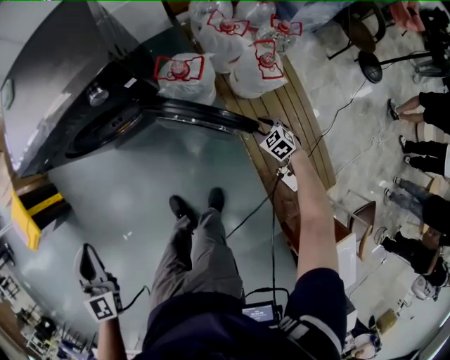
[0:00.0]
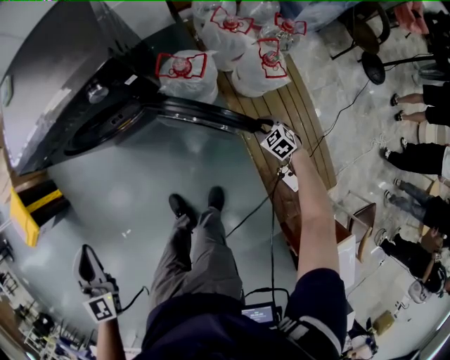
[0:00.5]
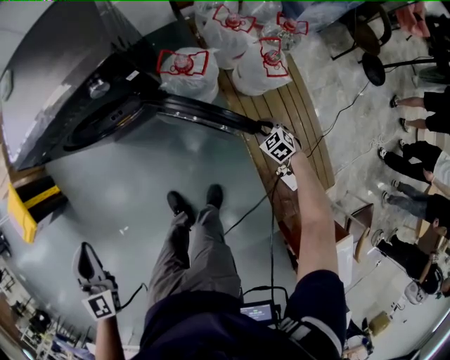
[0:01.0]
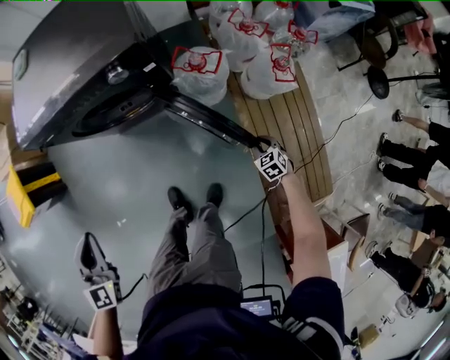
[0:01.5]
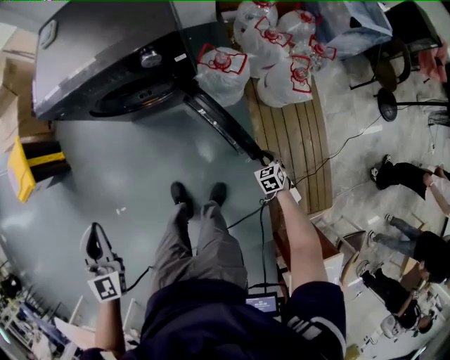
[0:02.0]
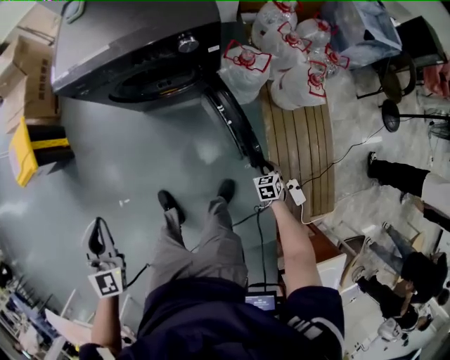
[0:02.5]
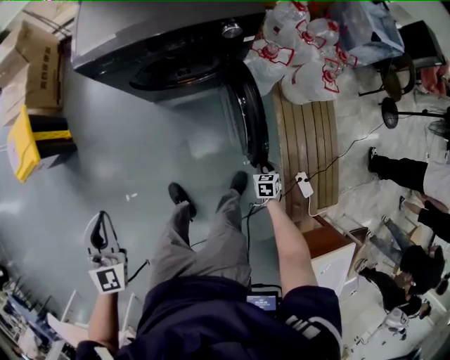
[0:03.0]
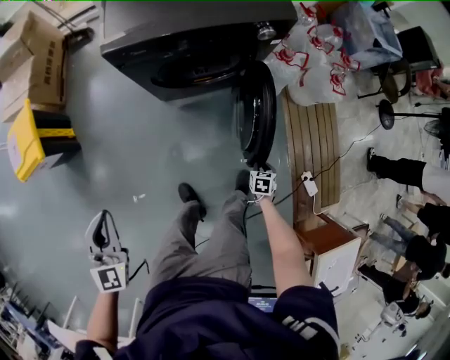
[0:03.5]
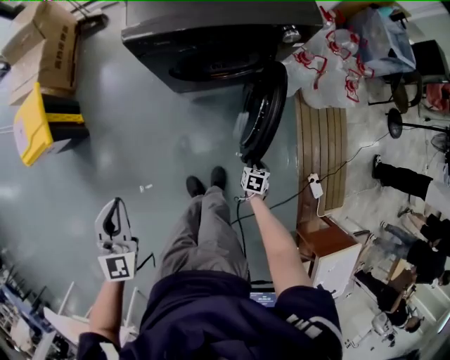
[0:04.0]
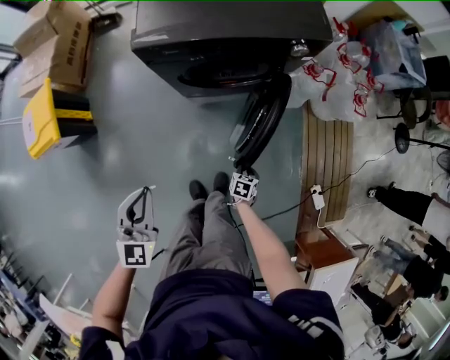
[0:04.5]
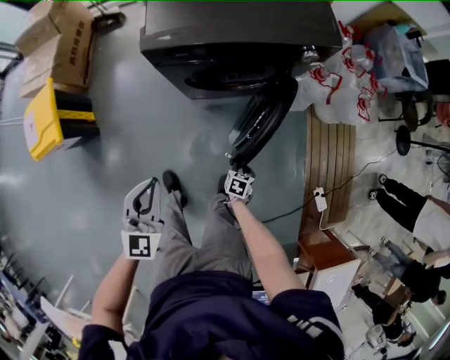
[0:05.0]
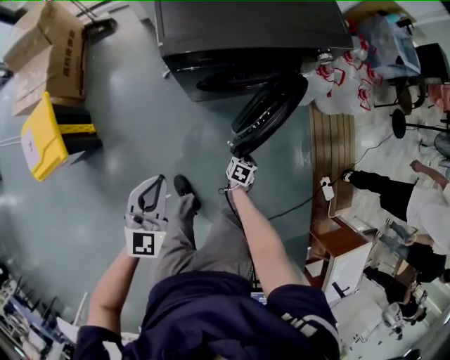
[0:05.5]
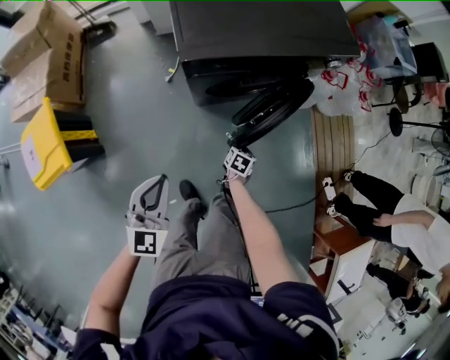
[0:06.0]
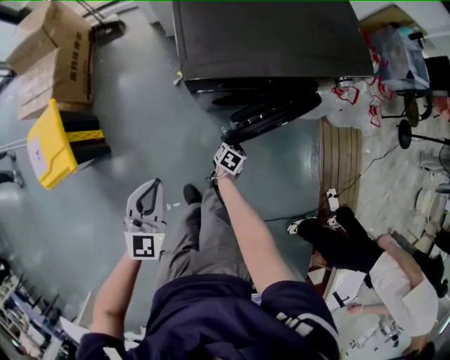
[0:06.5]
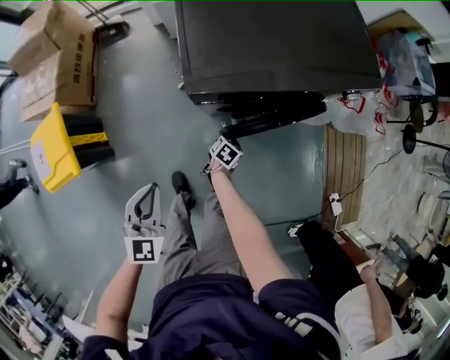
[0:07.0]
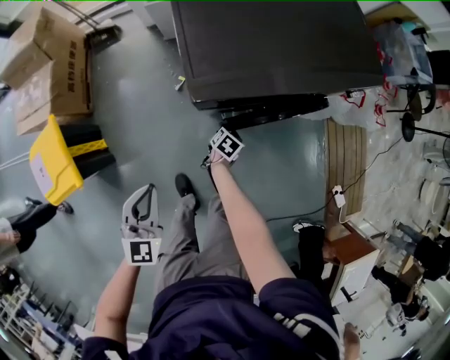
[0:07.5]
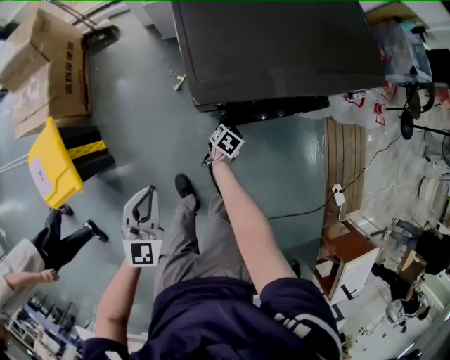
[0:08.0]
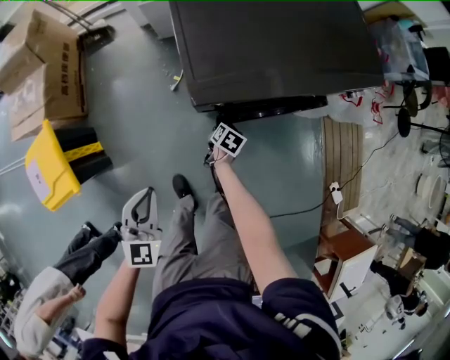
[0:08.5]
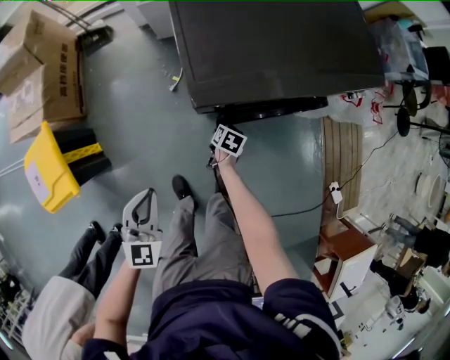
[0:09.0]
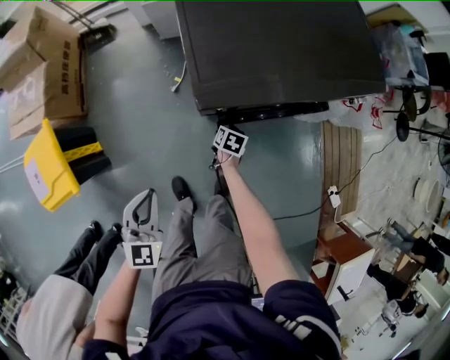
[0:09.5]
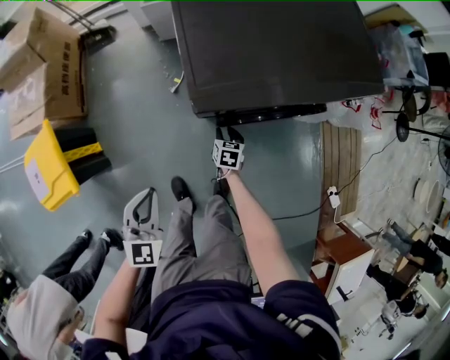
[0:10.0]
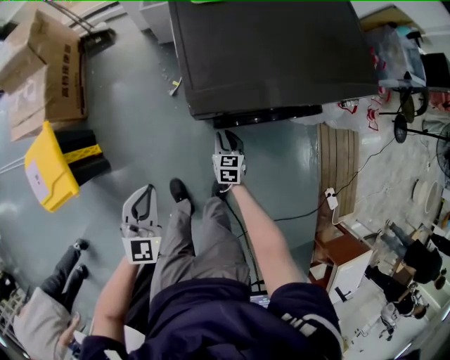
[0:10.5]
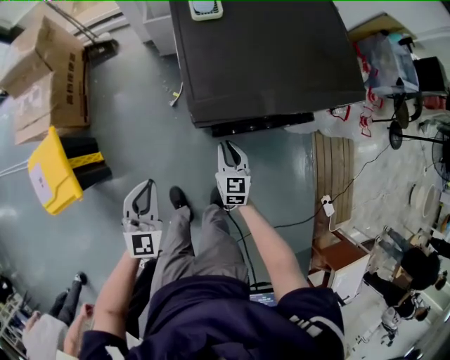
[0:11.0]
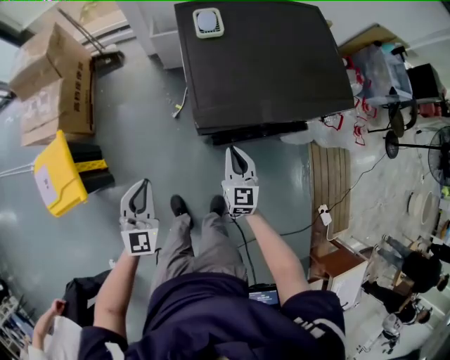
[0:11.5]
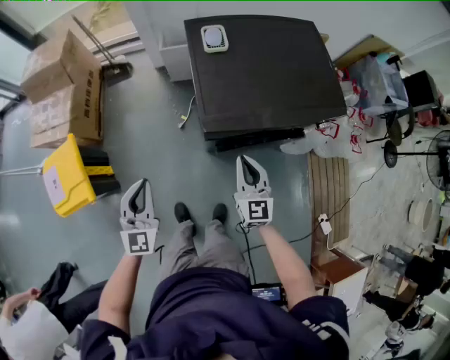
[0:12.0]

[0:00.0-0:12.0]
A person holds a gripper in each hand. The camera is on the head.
0:00.0 to 0:02.0: The left gripper heads to the left and backward, covering roughly 10 cm. Meanwhile the right gripper is displaced to the left and backward by about 15 cm.
0:02.0 to 0:04.0: Both grippers move to the left, about 35 cm. The right gripper swivels about 30 degrees.
0:04.0 to 0:06.0: The right gripper heads to the left, covering some 30 cm, and swivels roughly 20 degrees. Meanwhile the left gripper travels to the left, forward and downward by roughly 20 cm, and turns by about 20 degrees.
0:06.0 to 0:08.0: The right gripper heads forward and to the left, covering approximately 25 cm, while the left gripper is displaced forward and to the left by approximately 15 cm.
0:08.0 to 0:10.0: The right gripper rotates some 30 degrees.
0:10.0 to 0:12.0: The left gripper heads upward, covering some 15 cm, and changes its angle by roughly 20 degrees. The right gripper travels upward by about 40 cm, tips its fingers upward by about 40 degrees, and closes up.

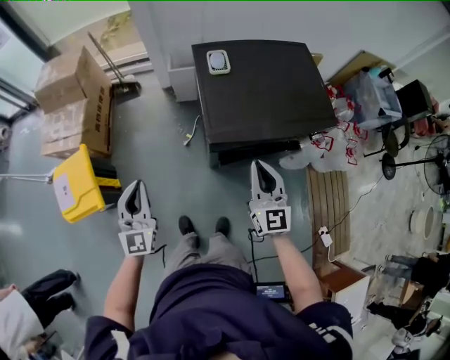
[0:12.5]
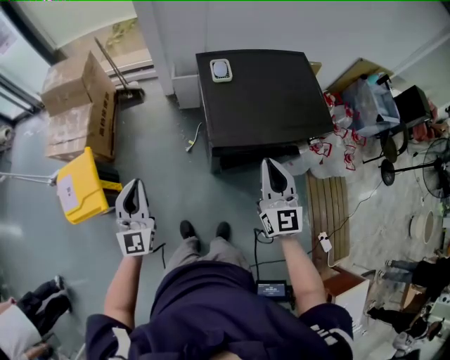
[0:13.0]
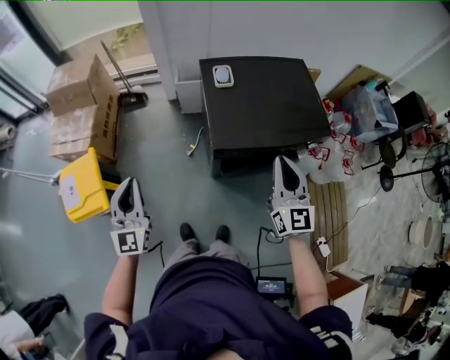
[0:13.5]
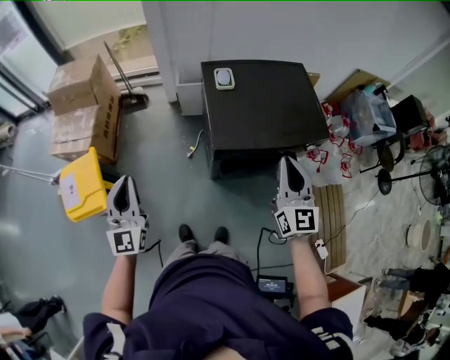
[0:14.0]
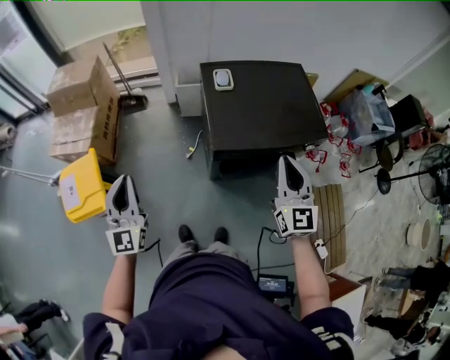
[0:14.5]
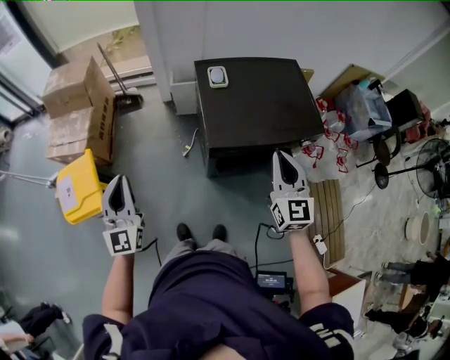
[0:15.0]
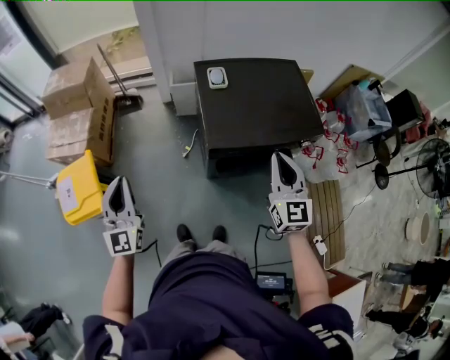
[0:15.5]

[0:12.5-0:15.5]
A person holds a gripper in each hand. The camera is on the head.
0:12.5 to 0:14.0: Both grippers move upward, about 15 cm.
0:14.0 to 0:15.5: The grippers move only a little.

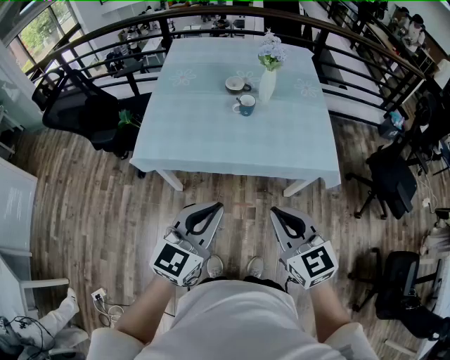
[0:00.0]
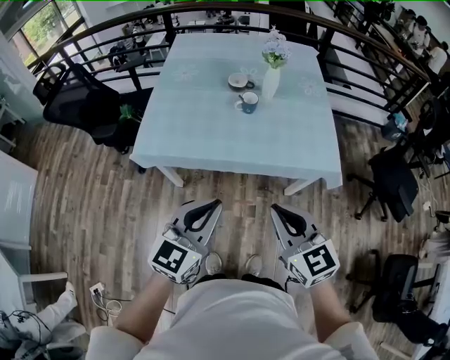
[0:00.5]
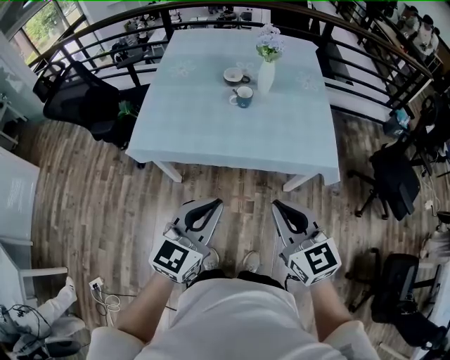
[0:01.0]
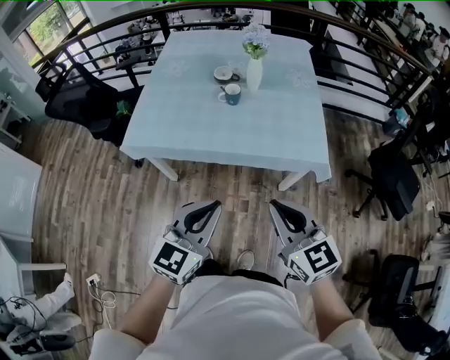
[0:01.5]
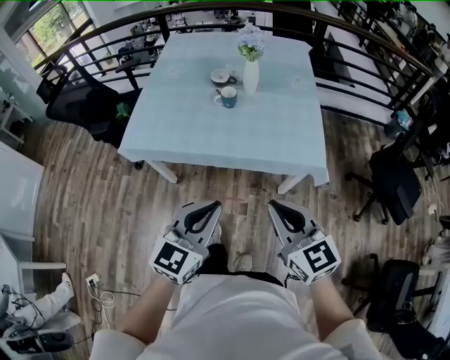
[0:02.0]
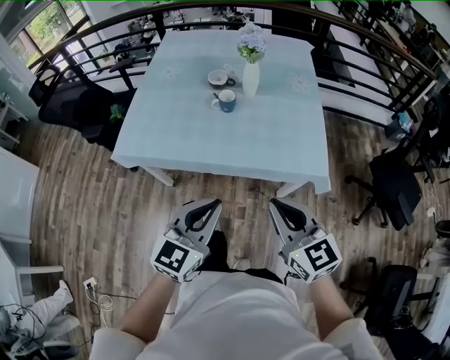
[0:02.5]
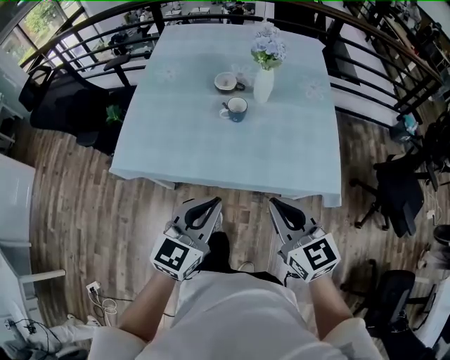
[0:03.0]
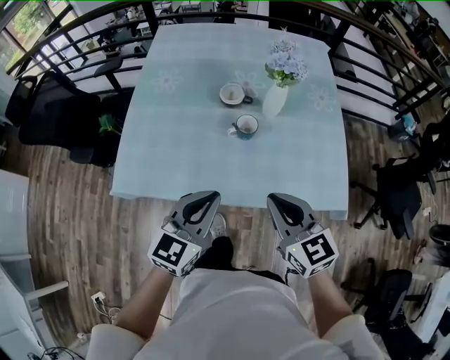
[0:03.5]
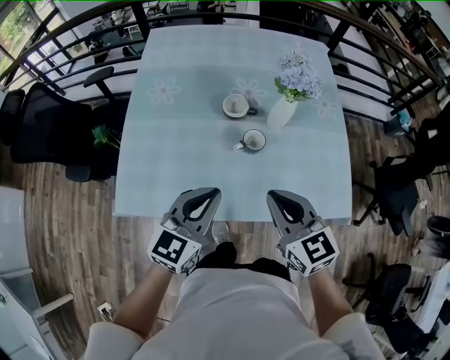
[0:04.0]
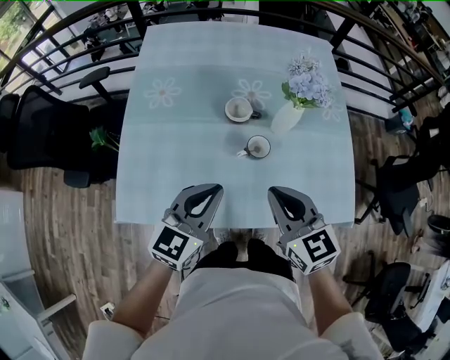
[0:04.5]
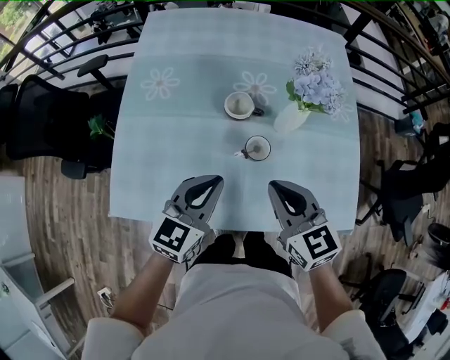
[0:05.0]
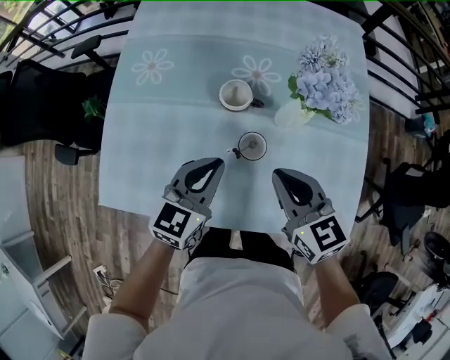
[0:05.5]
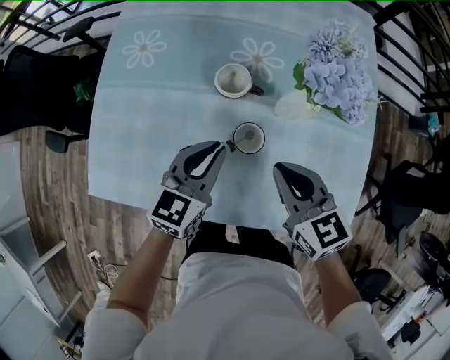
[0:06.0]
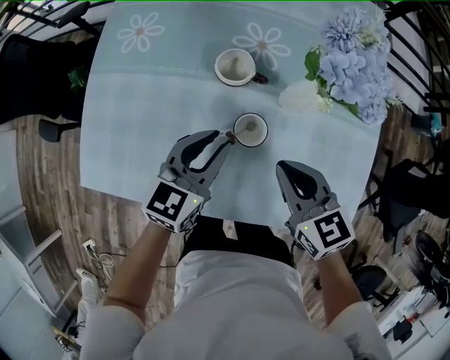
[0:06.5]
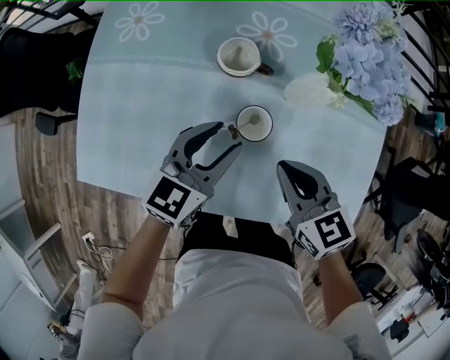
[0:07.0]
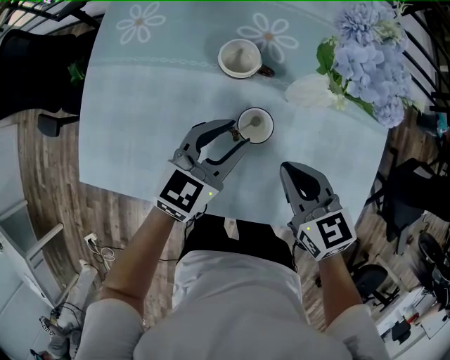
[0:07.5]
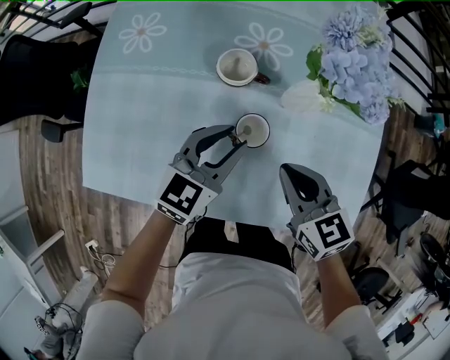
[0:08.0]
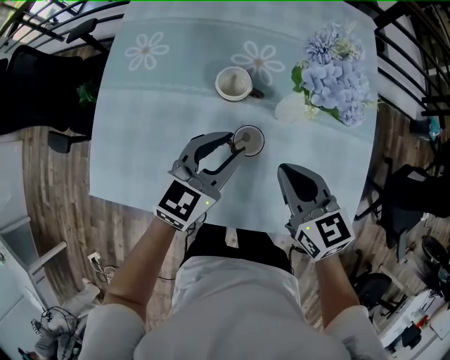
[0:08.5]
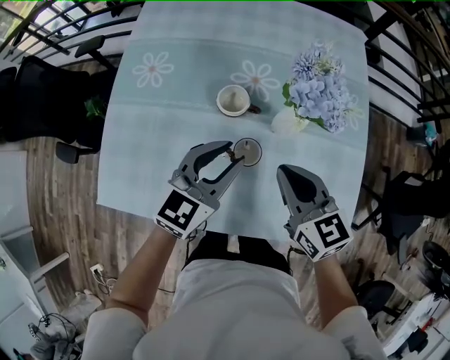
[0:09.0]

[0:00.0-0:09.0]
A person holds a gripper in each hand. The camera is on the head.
0:00.0 to 0:02.0: The grippers both shift to the right by some 10 cm.
0:02.0 to 0:04.5: Both grippers are carried forward, some 40 cm.
0:04.5 to 0:07.0: The left gripper moves downward, forward and to the right, about 20 cm, and opens its fingers; the right gripper is displaced downward, to the right and forward by about 20 cm.
0:07.0 to 0:09.0: The two grippers go approximately 10 cm upward.

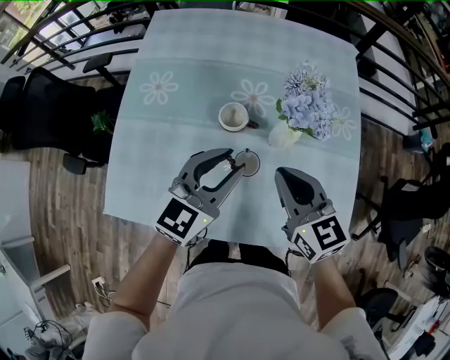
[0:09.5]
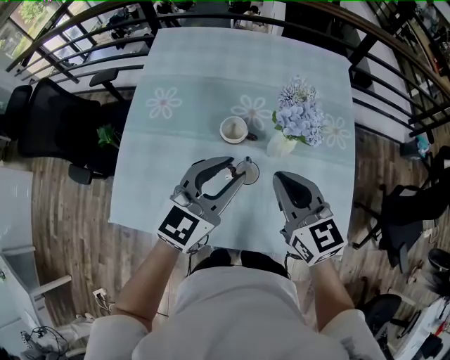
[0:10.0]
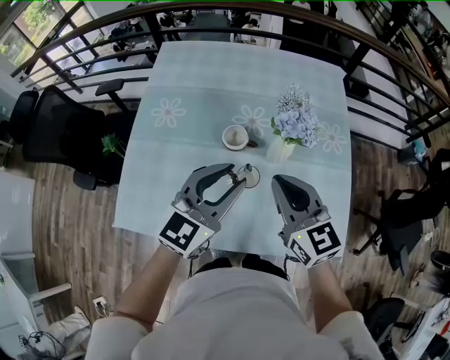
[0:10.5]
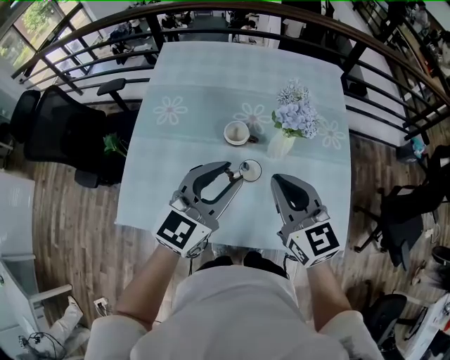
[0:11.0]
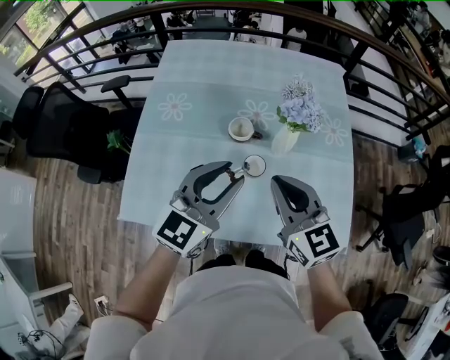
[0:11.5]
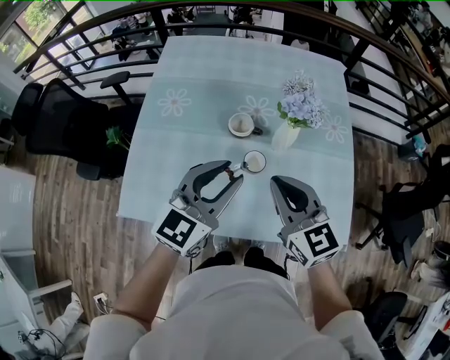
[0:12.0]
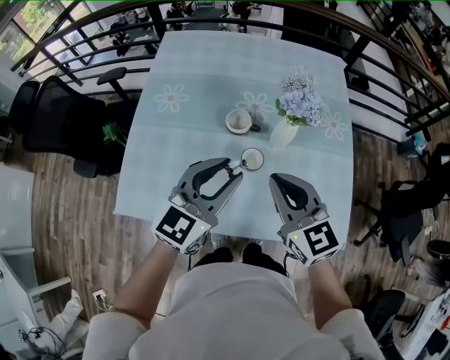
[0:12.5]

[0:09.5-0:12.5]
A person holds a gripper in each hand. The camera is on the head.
0:09.5 to 0:11.0: Both grippers move upward and backward, about 10 cm.
0:11.0 to 0:12.5: The grippers stay close to where they were, moving slightly.
